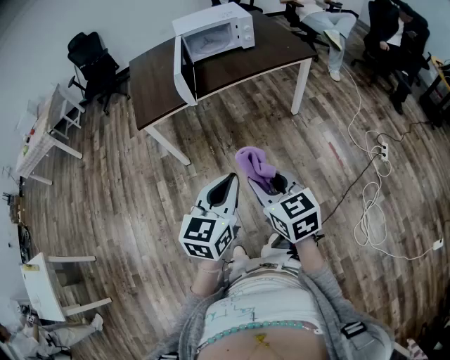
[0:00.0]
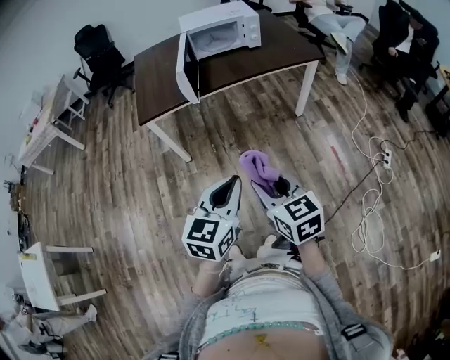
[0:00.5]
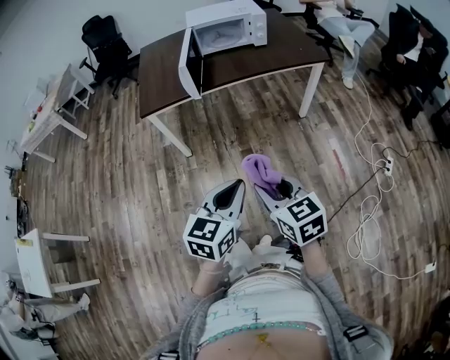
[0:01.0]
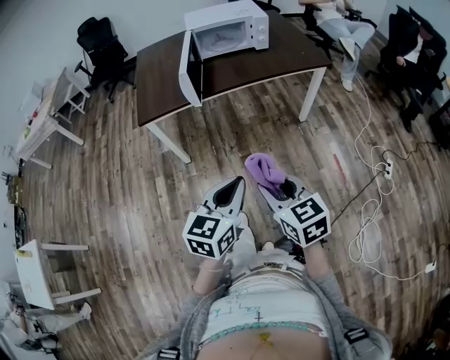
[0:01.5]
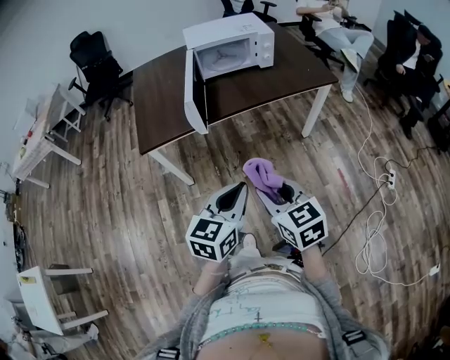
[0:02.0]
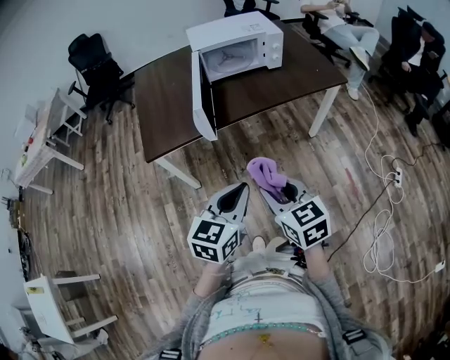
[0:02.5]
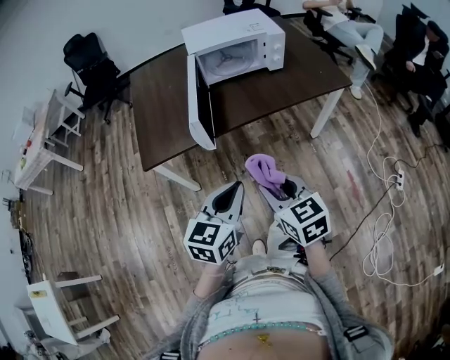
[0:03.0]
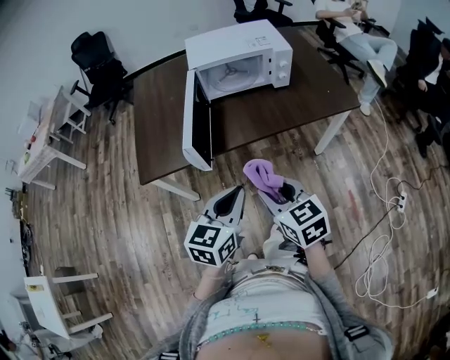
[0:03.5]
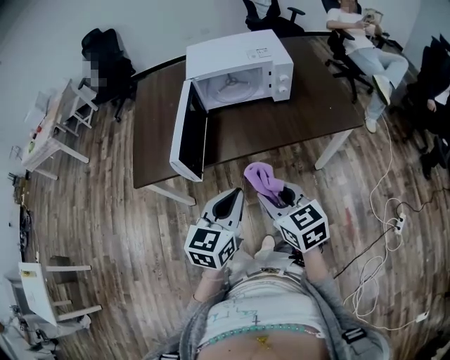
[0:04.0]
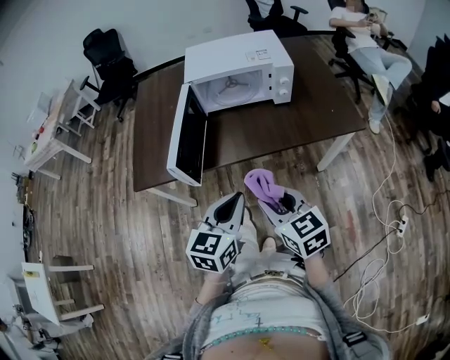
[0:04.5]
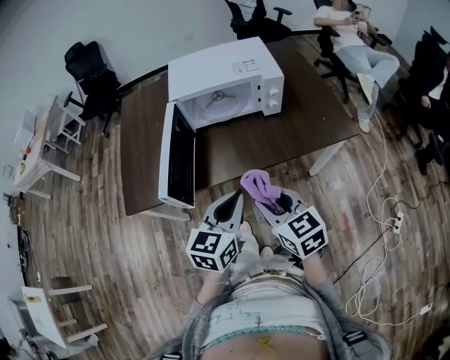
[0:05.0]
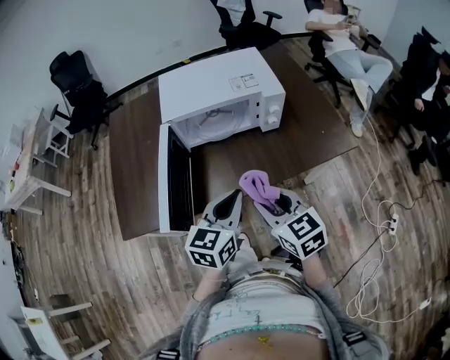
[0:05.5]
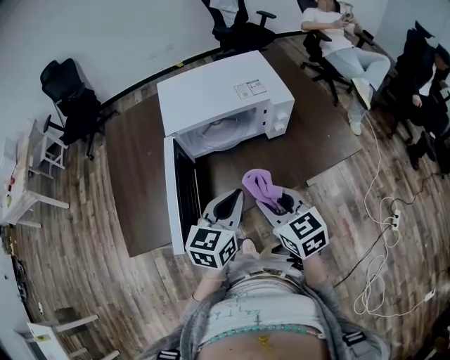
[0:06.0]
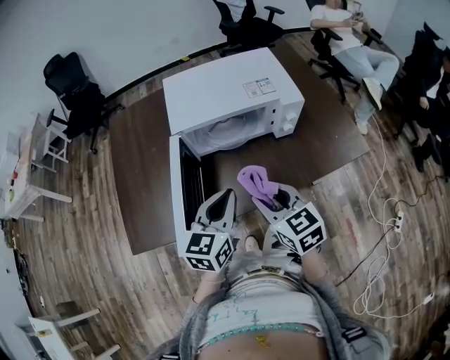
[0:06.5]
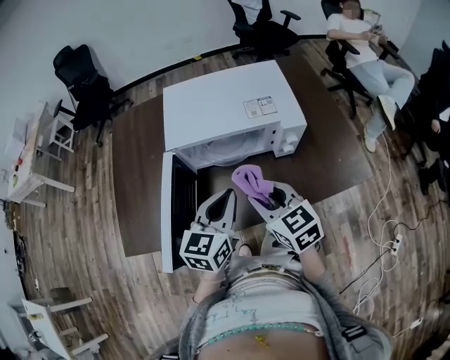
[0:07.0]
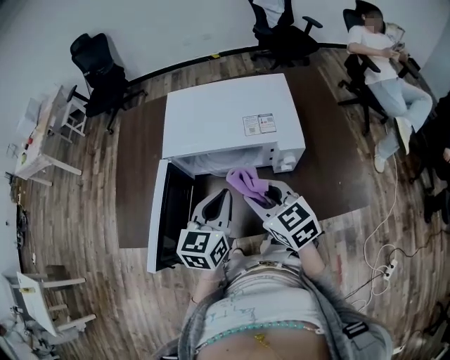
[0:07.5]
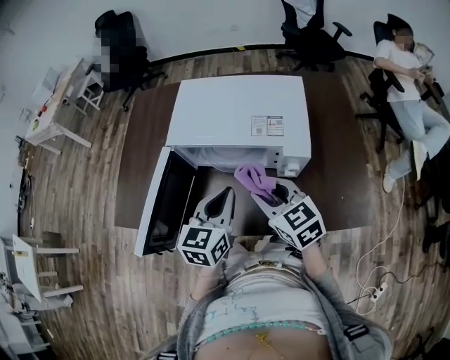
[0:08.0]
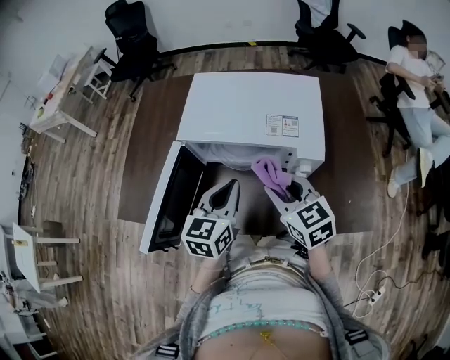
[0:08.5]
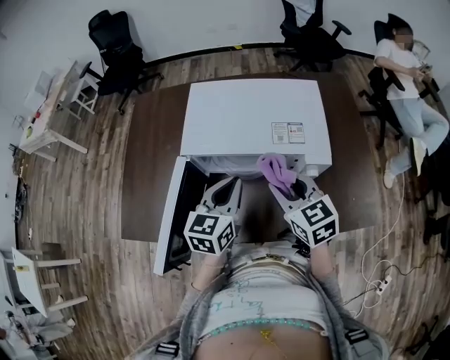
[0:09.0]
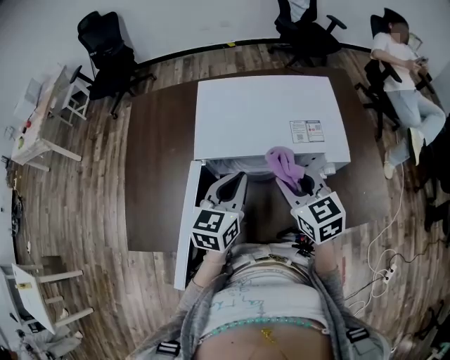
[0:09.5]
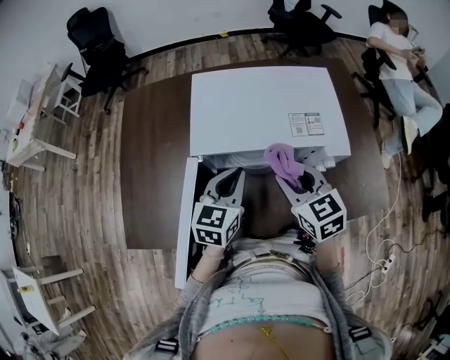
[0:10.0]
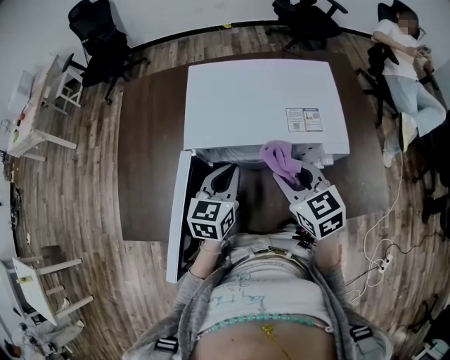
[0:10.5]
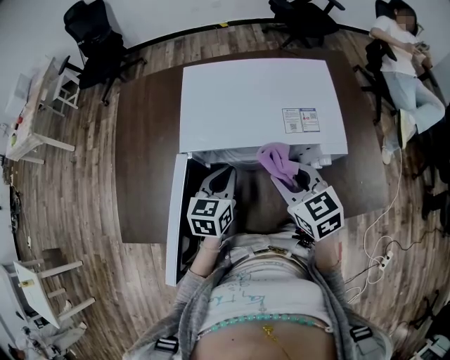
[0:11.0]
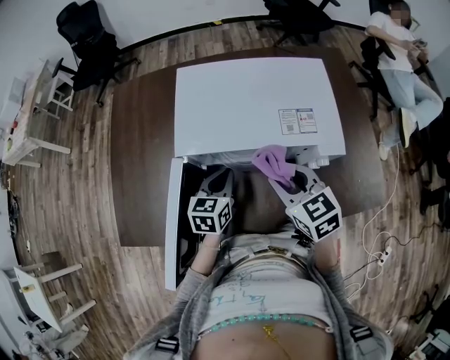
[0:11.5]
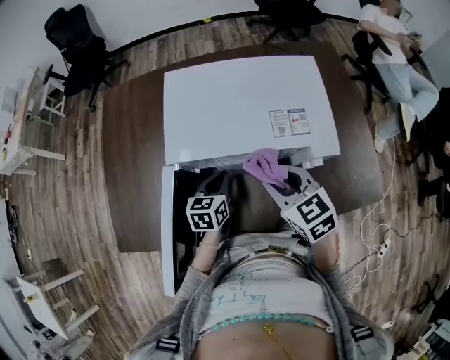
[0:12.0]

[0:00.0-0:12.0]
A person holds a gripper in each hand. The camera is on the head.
0.0 to 2.0 s: Both grippers move forward, roughly 15 cm.
2.0 to 4.0 s: The two grippers go approximately 25 cm forward.
4.0 to 6.0 s: The grippers both shift forward by roughly 25 cm.
6.0 to 8.0 s: The right gripper moves approximately 20 cm, and turns by roughly 30 degrees, while the left gripper ends up some 15 cm from where it was, and changes its angle by approximately 30 degrees.
8.0 to 10.0 s: The left gripper is displaced forward and to the left by roughly 10 cm, while the right gripper shifts approximately 5 cm forward.
10.0 to 12.0 s: The left gripper is displaced downward by about 15 cm, and swivels approximately 20 degrees.

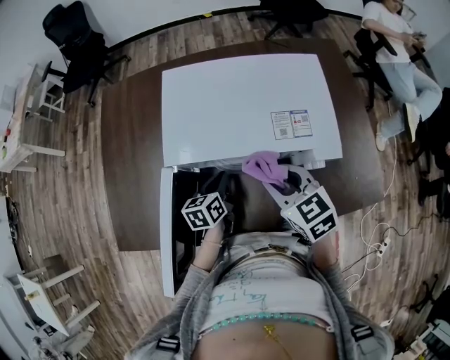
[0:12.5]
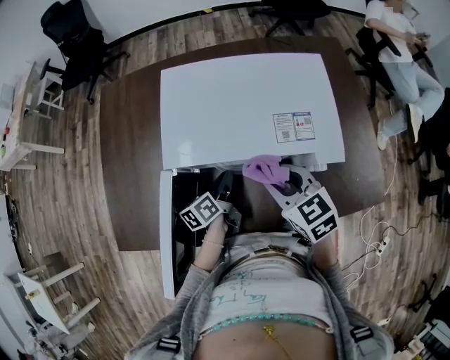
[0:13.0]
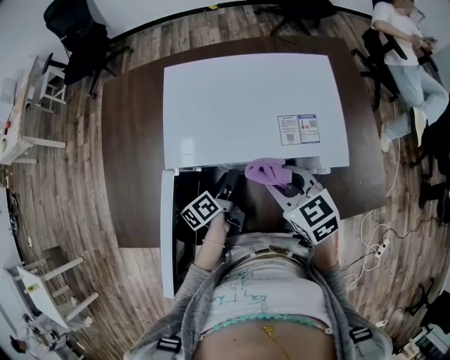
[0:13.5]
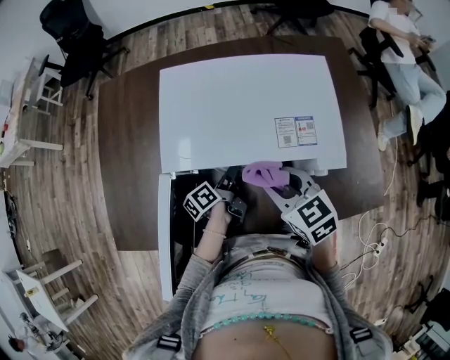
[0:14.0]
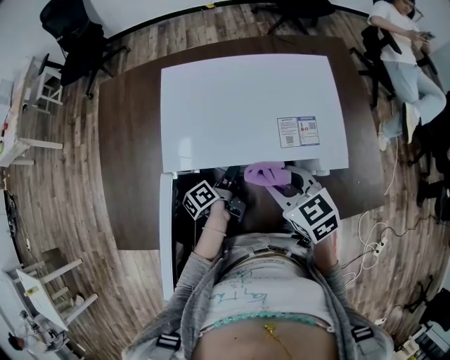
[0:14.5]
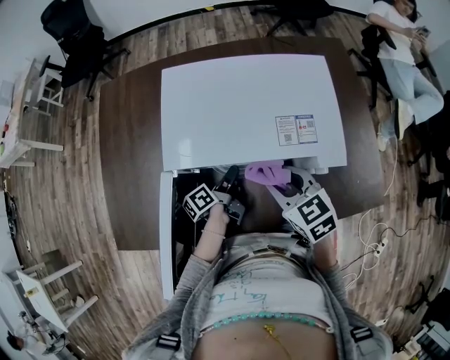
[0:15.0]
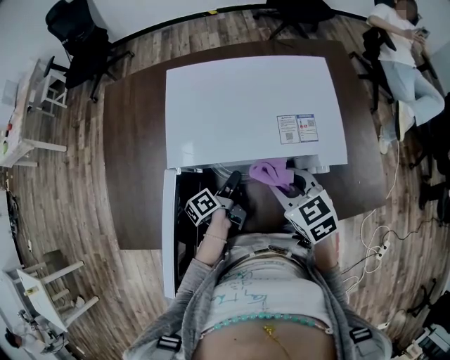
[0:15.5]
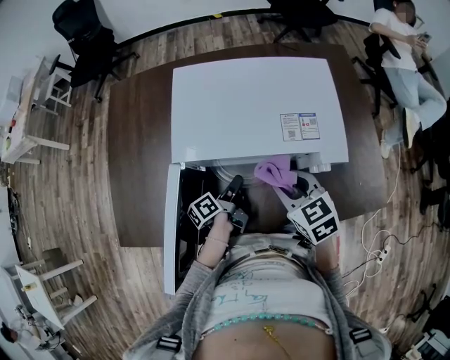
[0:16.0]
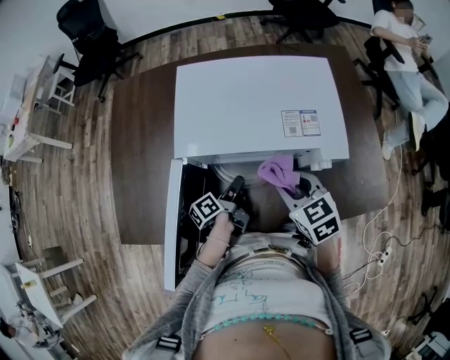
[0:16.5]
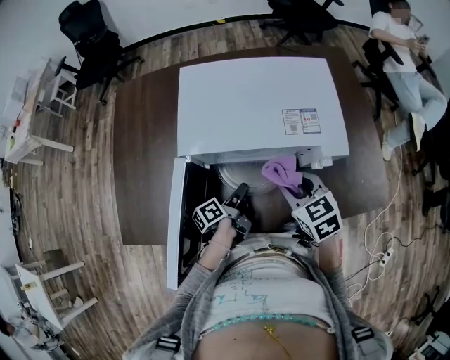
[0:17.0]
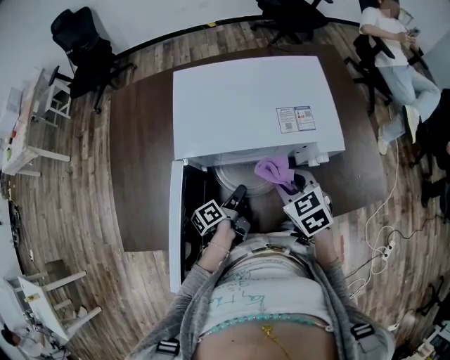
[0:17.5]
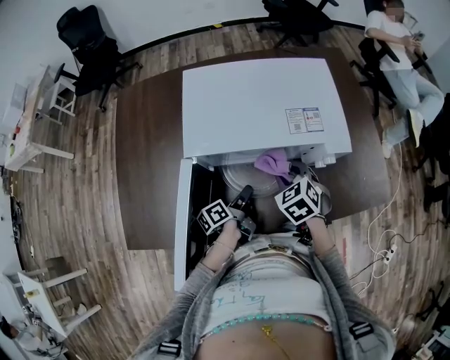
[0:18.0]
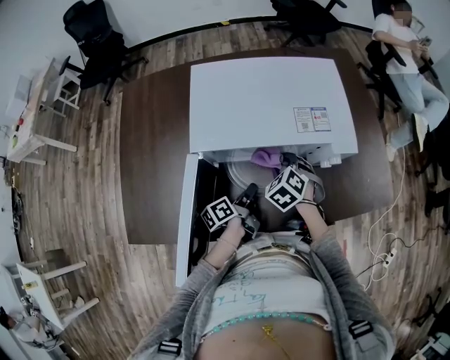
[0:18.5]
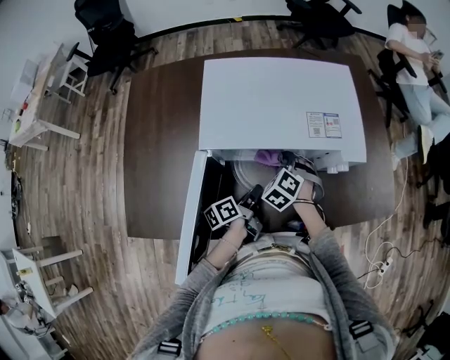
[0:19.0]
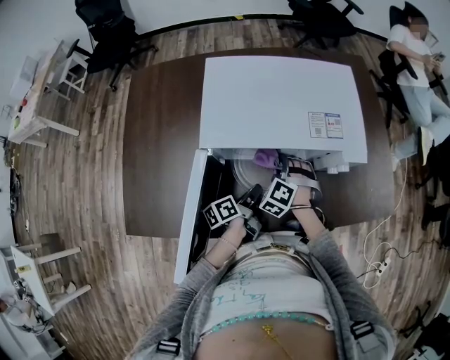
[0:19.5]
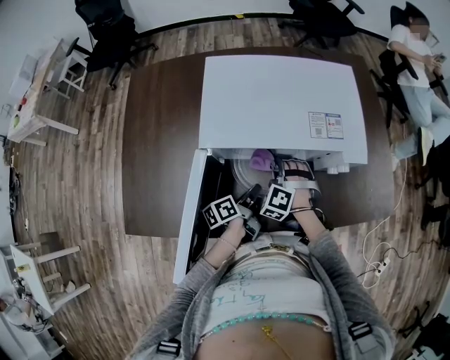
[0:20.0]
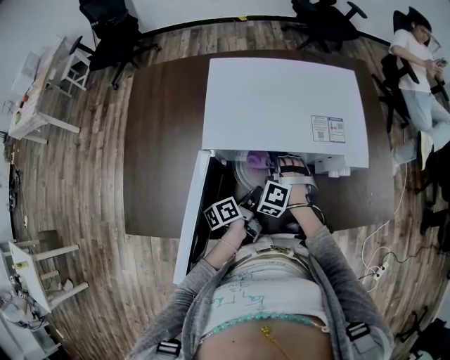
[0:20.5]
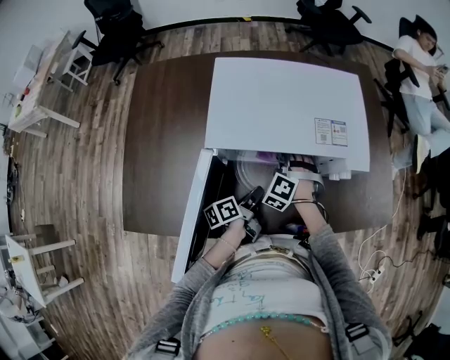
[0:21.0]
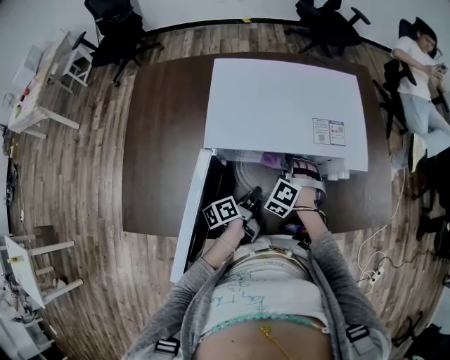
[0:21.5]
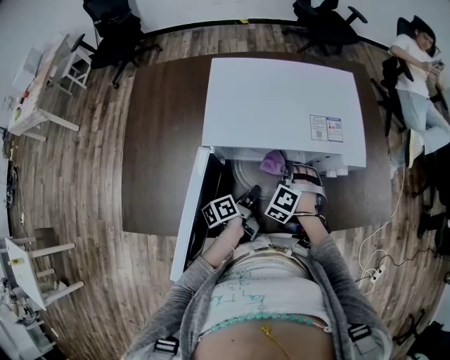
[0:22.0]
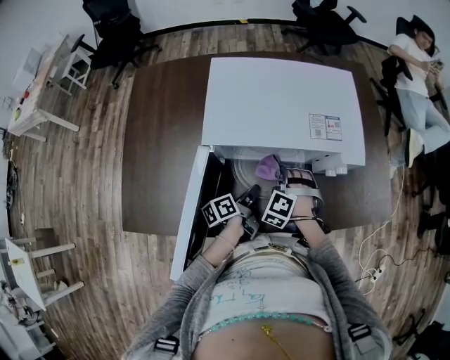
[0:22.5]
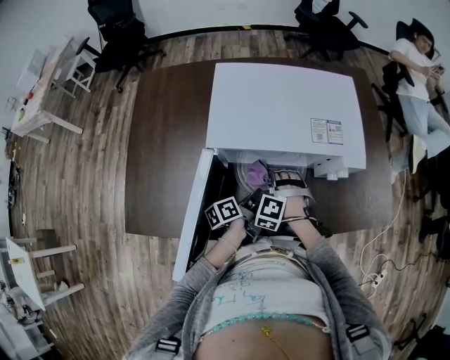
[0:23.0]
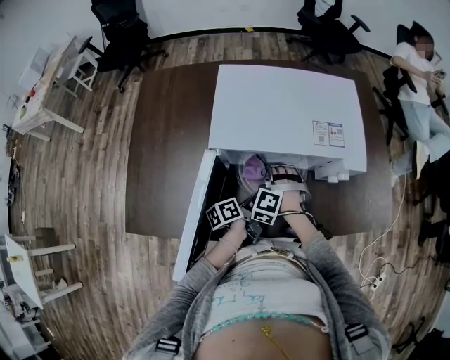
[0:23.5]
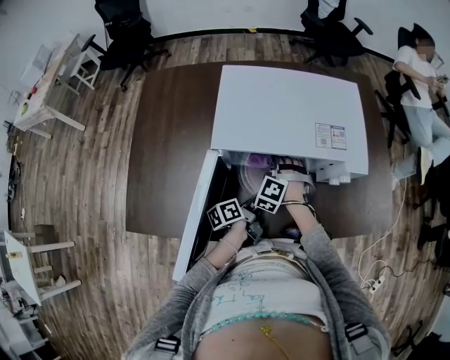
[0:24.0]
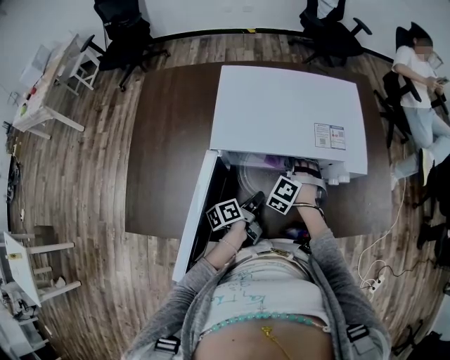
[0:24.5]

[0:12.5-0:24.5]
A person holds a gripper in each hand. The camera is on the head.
12.5 to 14.5 s: The left gripper shifts by some 5 cm, rotates around the line of its fingers by approximately 50 degrees, counterclockwise from behind, and opens up.
14.5 to 16.5 s: The left gripper shifts approximately 5 cm backward.
16.5 to 18.5 s: The right gripper shifts some 10 cm downward and forward, and swivels some 30 degrees.
18.5 to 20.5 s: The right gripper goes roughly 5 cm to the left, and changes its angle by about 40 degrees.
20.5 to 22.5 s: The right gripper travels to the right by approximately 5 cm.
22.5 to 24.5 s: The right gripper goes some 5 cm forward.

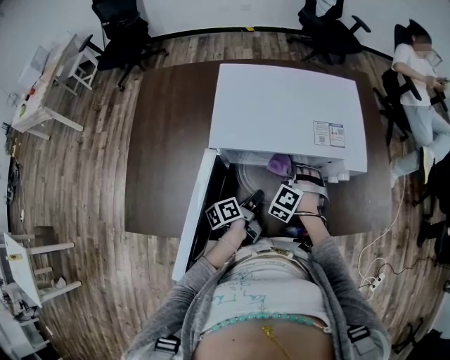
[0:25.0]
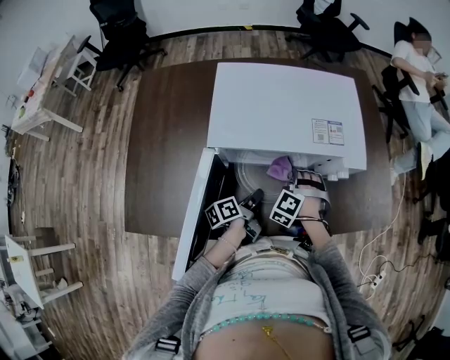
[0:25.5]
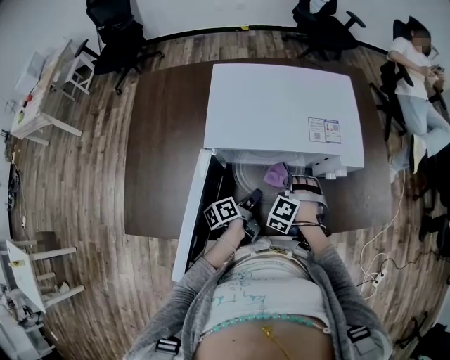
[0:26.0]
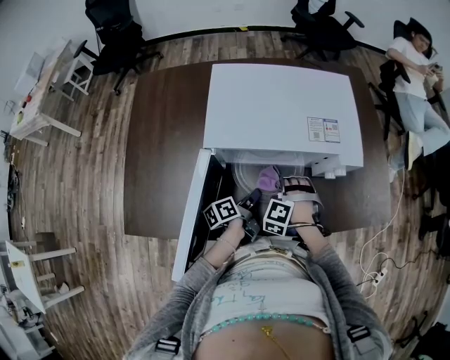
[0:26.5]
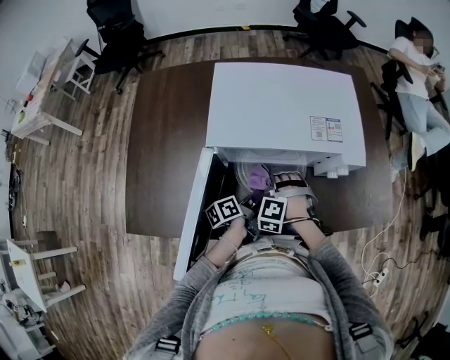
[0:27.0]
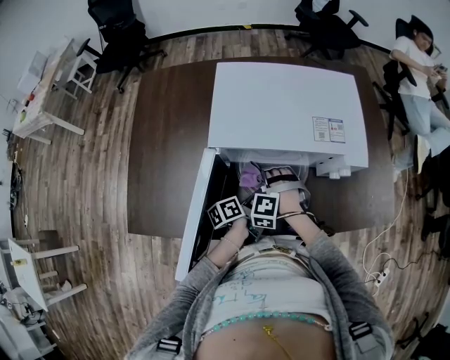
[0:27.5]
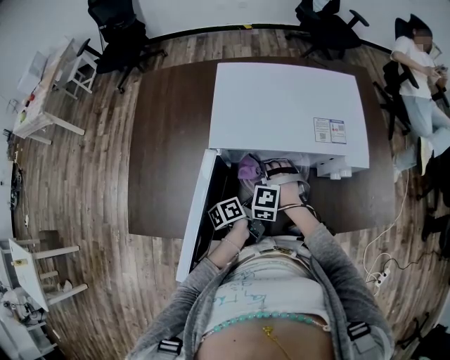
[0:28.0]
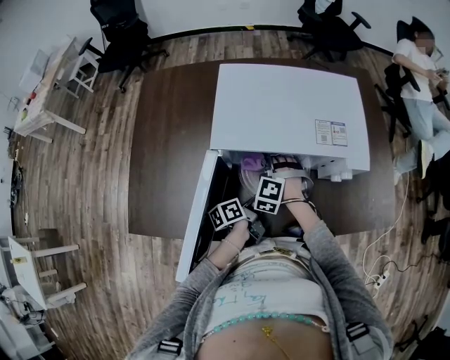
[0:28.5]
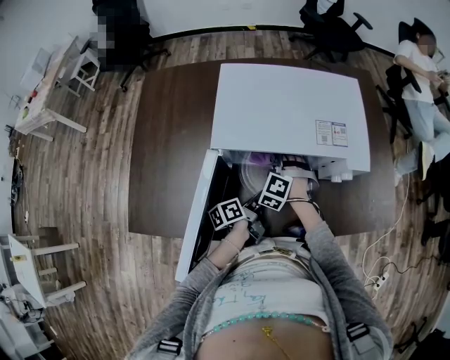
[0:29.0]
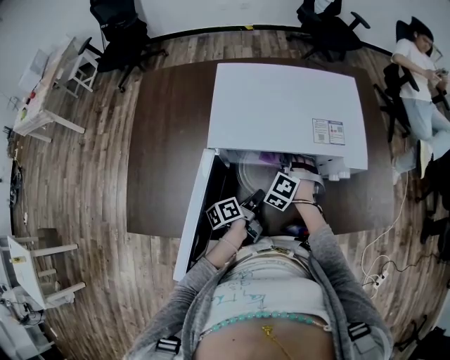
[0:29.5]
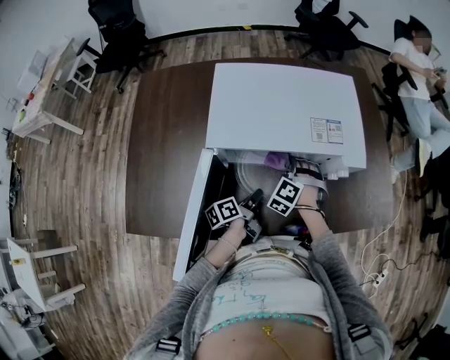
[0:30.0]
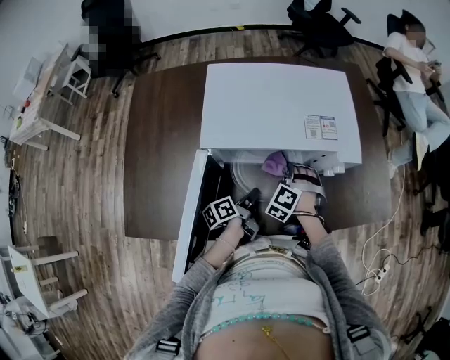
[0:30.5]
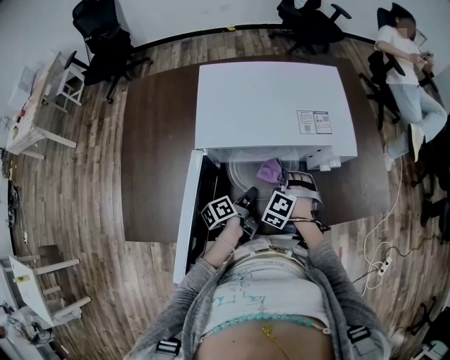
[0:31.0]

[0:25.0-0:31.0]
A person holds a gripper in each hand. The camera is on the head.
25.0 to 27.0 s: The right gripper heads backward, covering about 10 cm.
27.0 to 29.0 s: The right gripper goes some 10 cm forward.
29.0 to 31.0 s: The right gripper heads to the right, covering roughly 10 cm.
